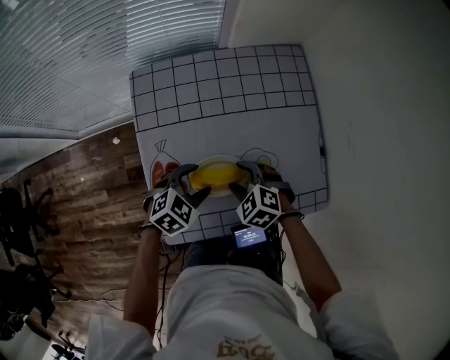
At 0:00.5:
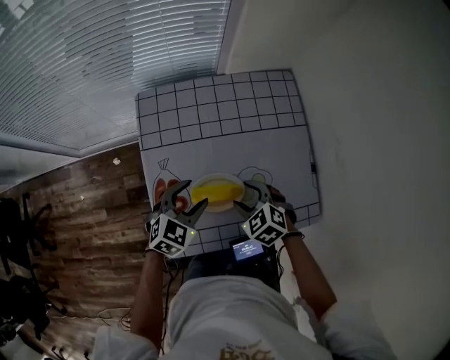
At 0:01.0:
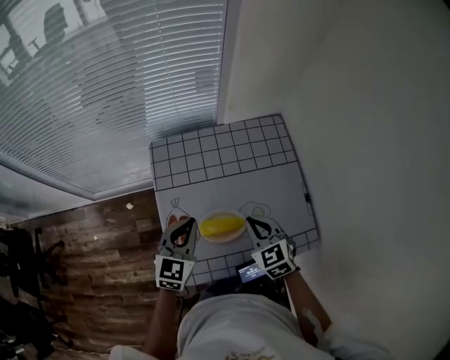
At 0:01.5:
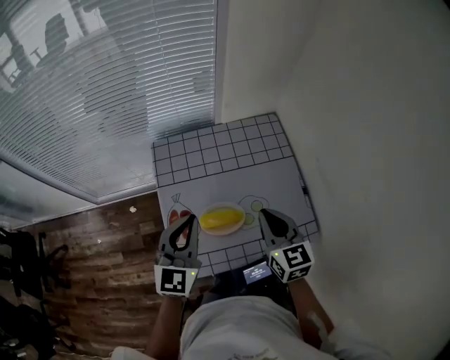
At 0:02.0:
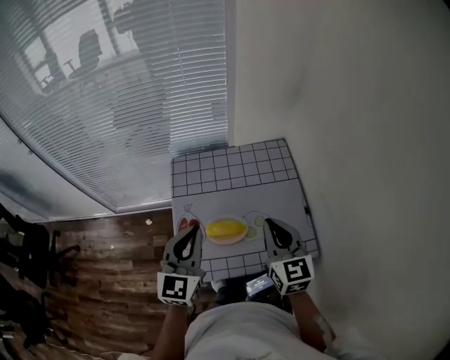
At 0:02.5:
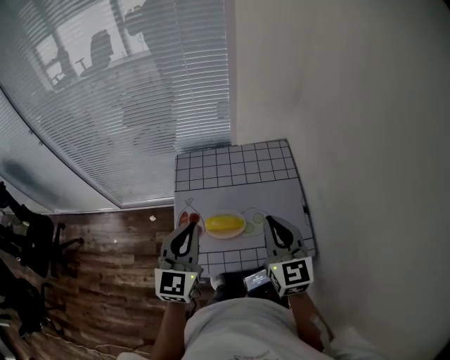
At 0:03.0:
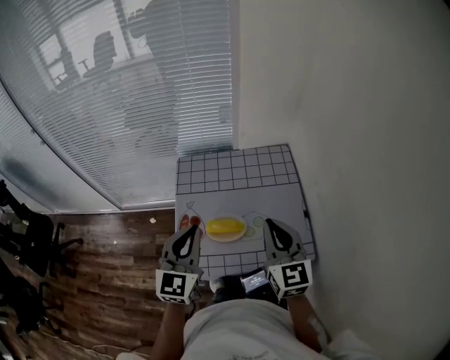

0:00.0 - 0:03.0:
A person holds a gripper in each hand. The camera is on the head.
0:00.0 - 0:01.5: Both grippers move upward, some 25 cm. The left gripper points its fingers approximately 40 degrees further upward, and closes, while the right gripper angles its fingers upward, by about 40 degrees, and closes its fingers.
0:01.5 - 0:03.0: The left gripper shifts approximately 10 cm backward and upward, while the right gripper travels upward and backward by approximately 10 cm.

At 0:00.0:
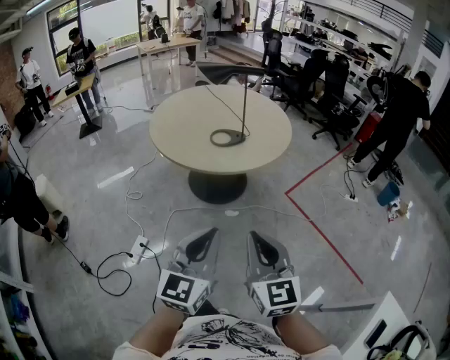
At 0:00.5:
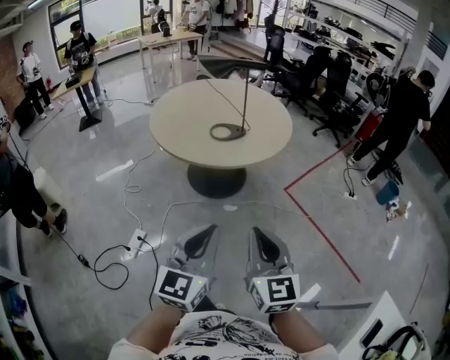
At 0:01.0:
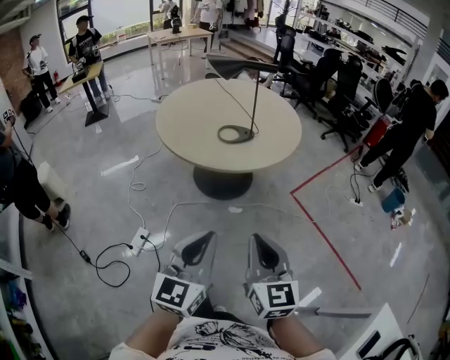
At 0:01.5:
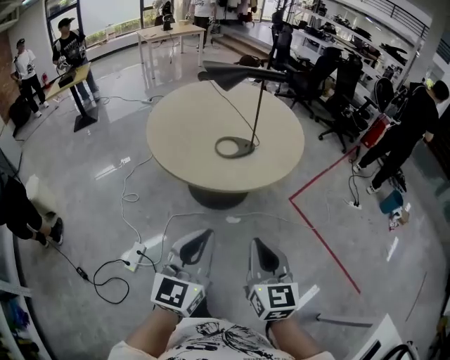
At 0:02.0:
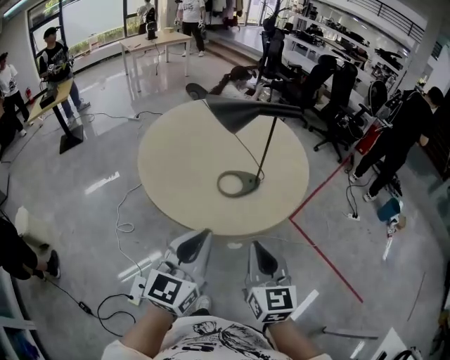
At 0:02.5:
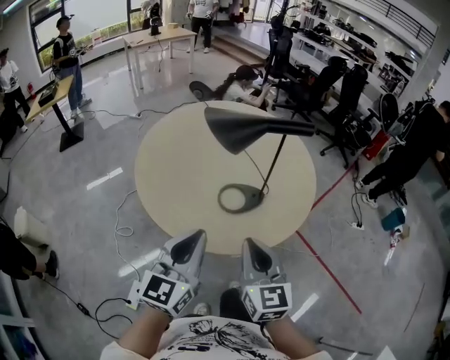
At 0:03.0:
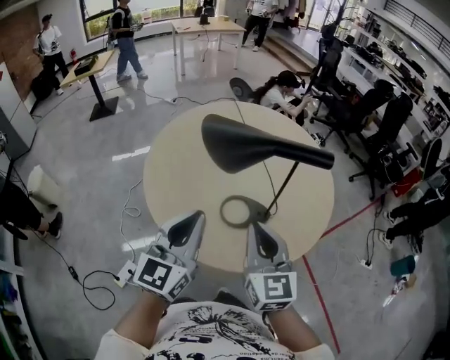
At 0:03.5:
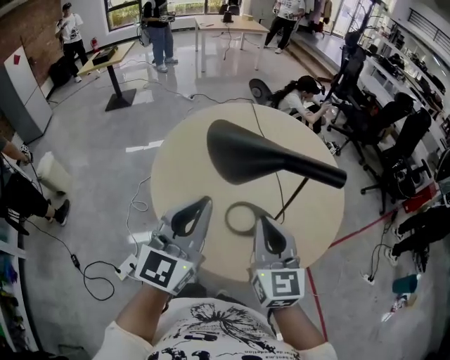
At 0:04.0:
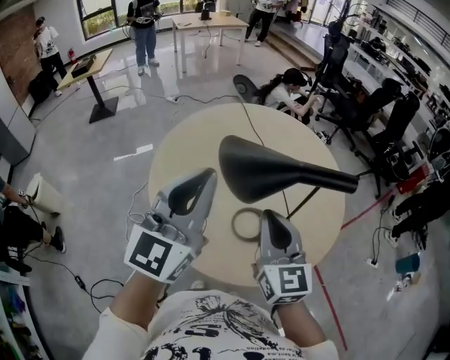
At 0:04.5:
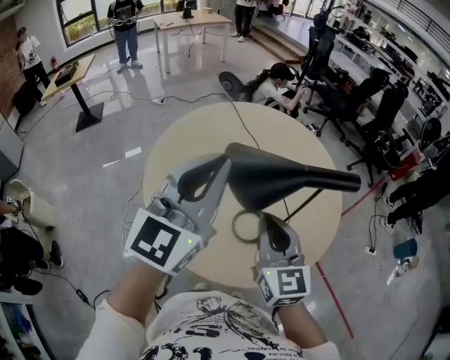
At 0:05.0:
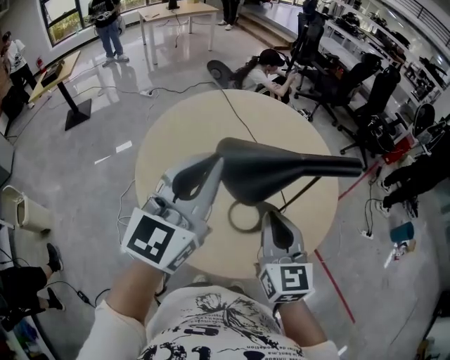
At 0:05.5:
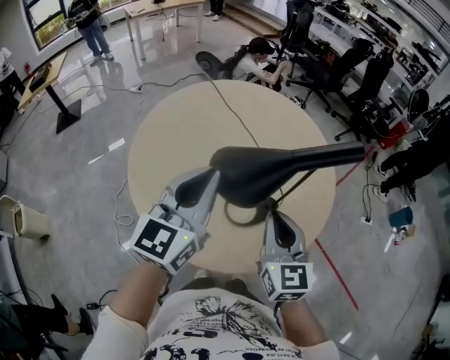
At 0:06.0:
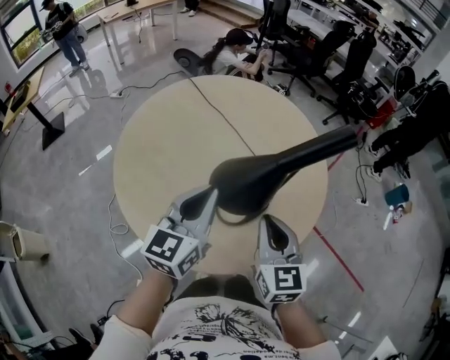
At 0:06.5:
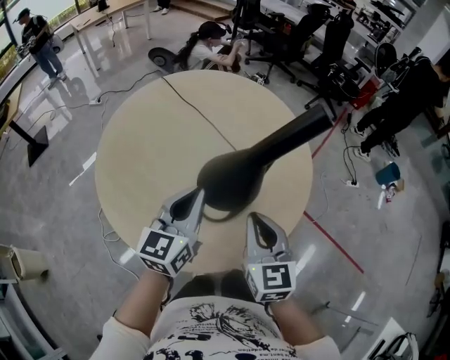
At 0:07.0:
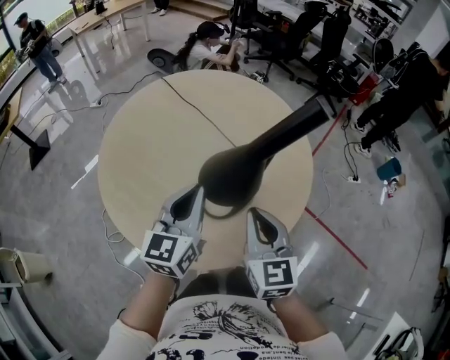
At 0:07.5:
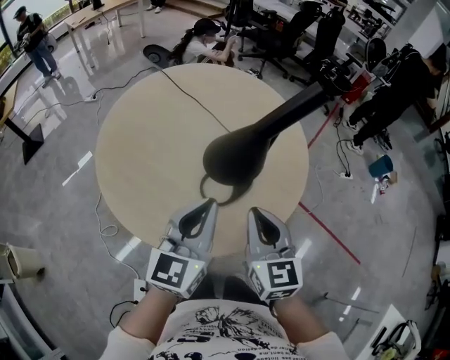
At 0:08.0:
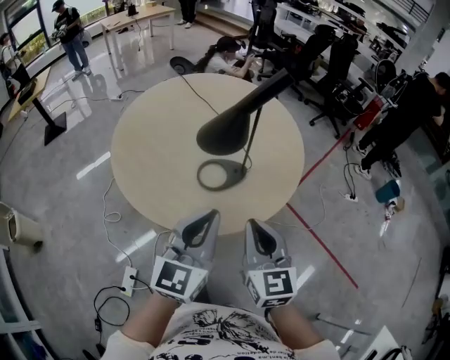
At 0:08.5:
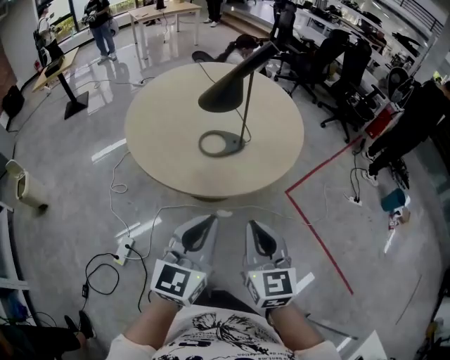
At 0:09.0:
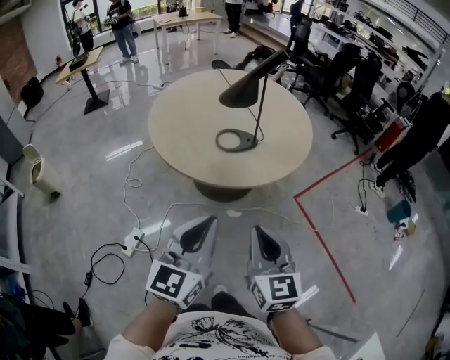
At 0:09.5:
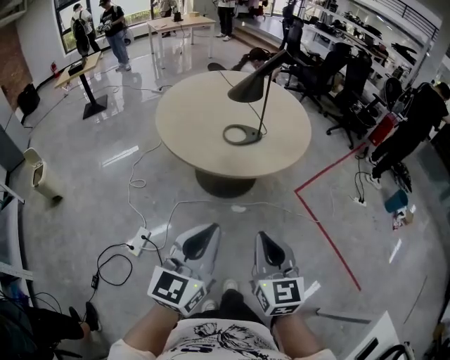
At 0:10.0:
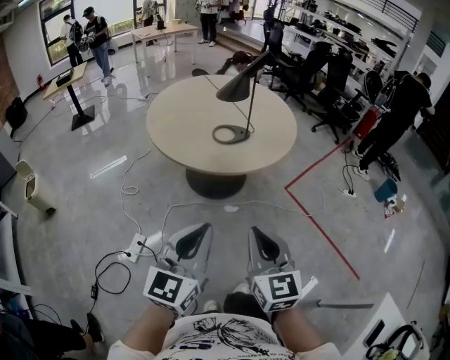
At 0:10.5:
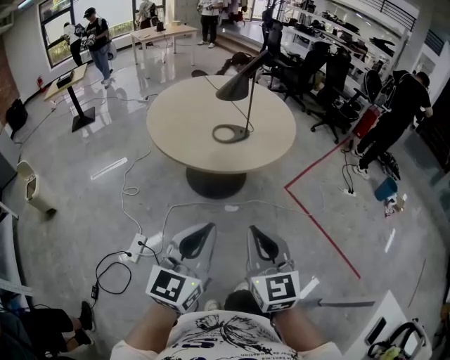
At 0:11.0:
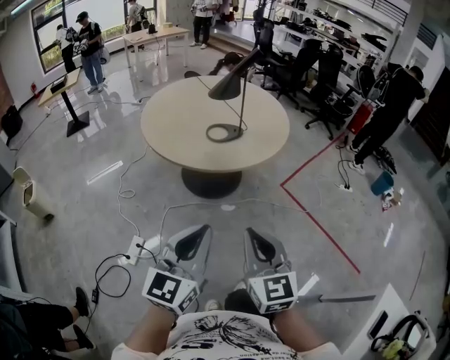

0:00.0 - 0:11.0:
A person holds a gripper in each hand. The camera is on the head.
0:00.0 - 0:02.0: The left gripper is displaced forward and to the left by about 30 cm. The right gripper heads forward, covering some 25 cm.
0:02.0 - 0:03.5: The two grippers go approximately 20 cm forward. The right gripper changes its angle by some 20 degrees, while the left gripper swivels some 20 degrees.
0:03.5 - 0:05.5: The right gripper turns by roughly 20 degrees; the left gripper moves forward, some 10 cm, reaches roughly 10 cm upward, then returns, and rotates about 20 degrees.
0:05.5 - 0:07.5: The right gripper shifts about 5 cm backward; the left gripper is displaced to the right, backward and downward by approximately 10 cm.
0:07.5 - 0:09.0: Both grippers travel together backward, roughly 30 cm. The right gripper turns by approximately 20 degrees.
0:09.0 - 0:11.0: Both grippers move backward, roughly 15 cm.

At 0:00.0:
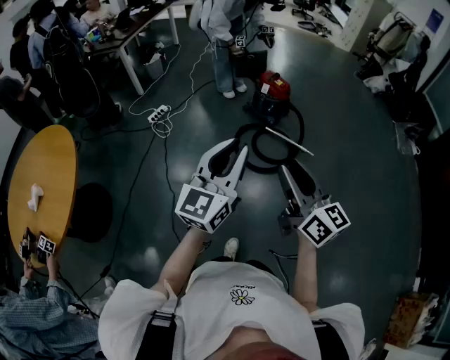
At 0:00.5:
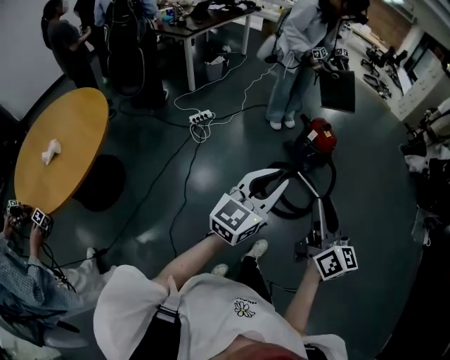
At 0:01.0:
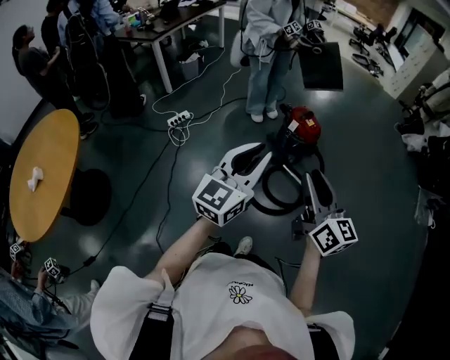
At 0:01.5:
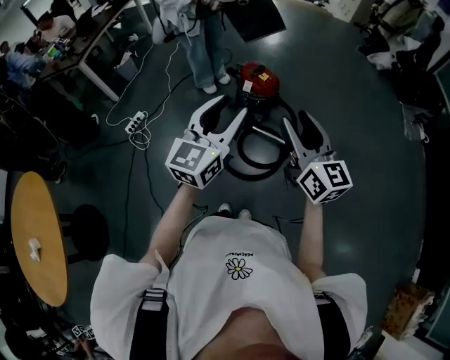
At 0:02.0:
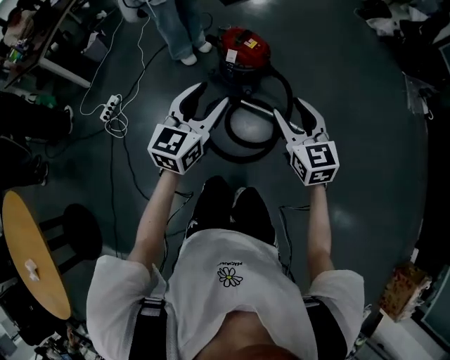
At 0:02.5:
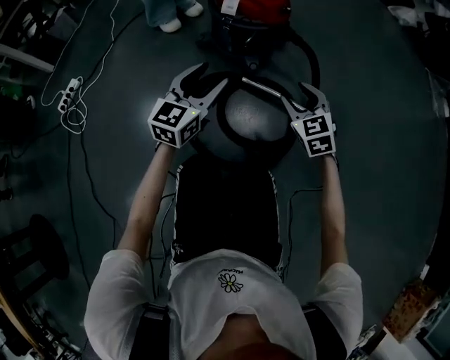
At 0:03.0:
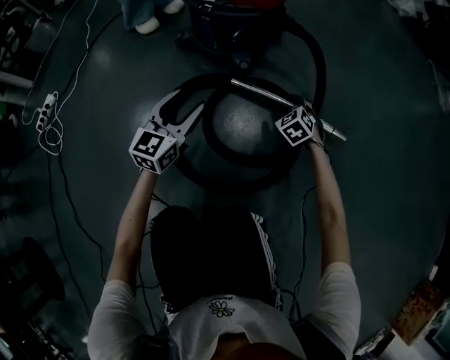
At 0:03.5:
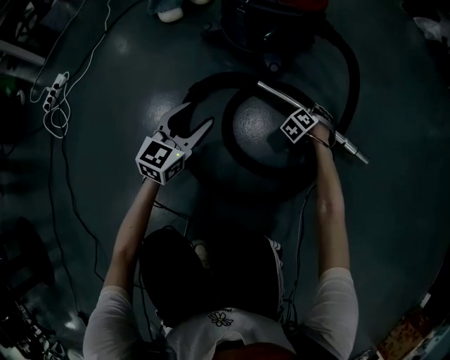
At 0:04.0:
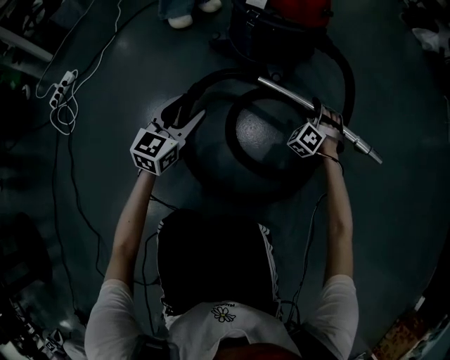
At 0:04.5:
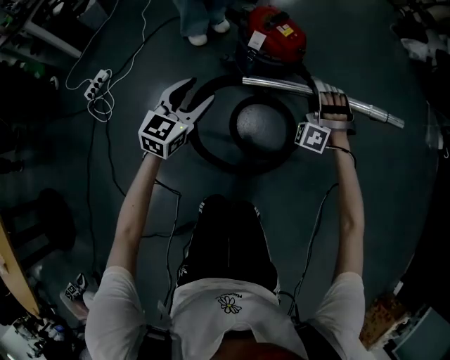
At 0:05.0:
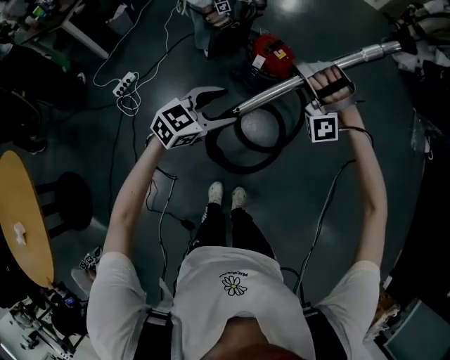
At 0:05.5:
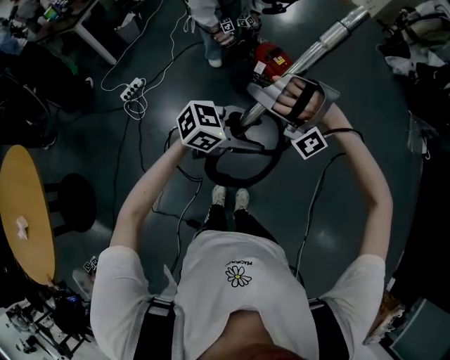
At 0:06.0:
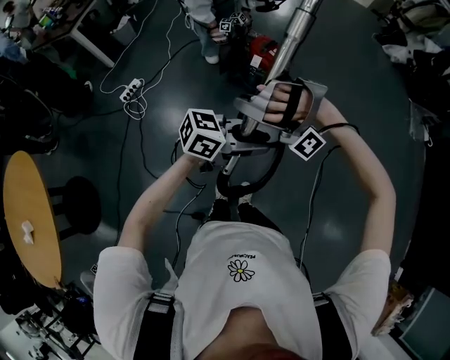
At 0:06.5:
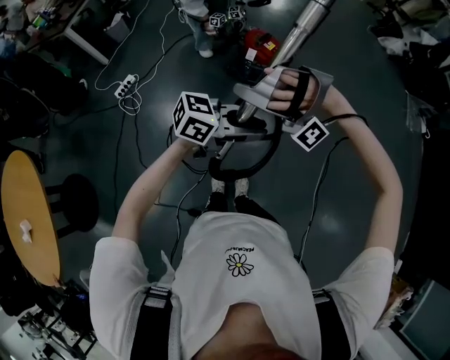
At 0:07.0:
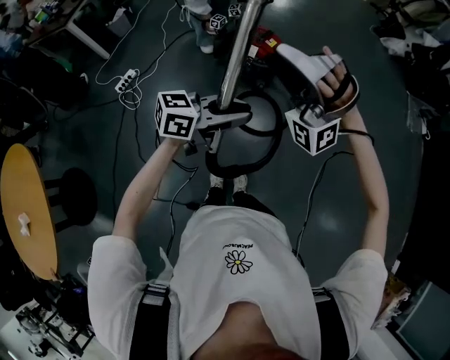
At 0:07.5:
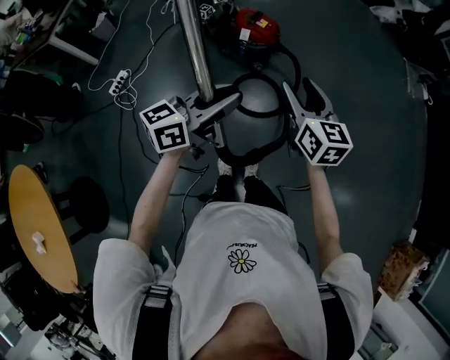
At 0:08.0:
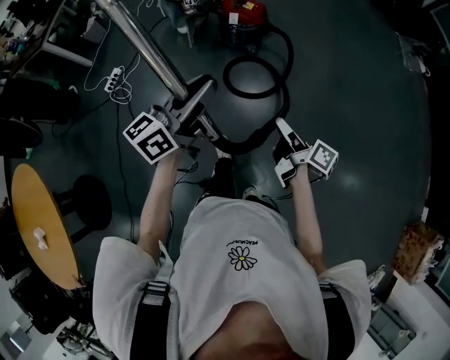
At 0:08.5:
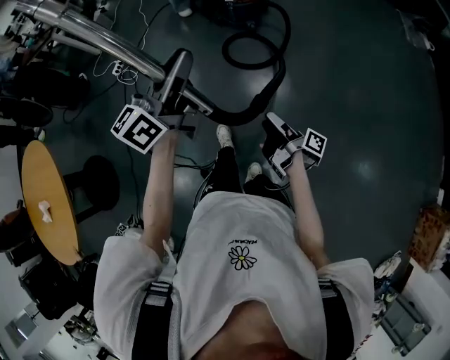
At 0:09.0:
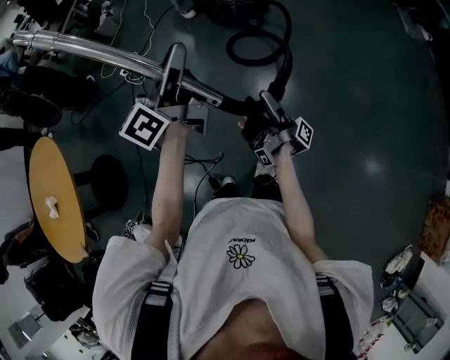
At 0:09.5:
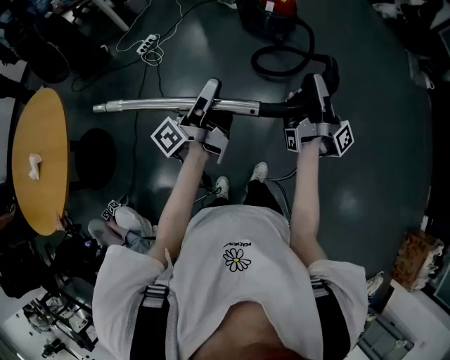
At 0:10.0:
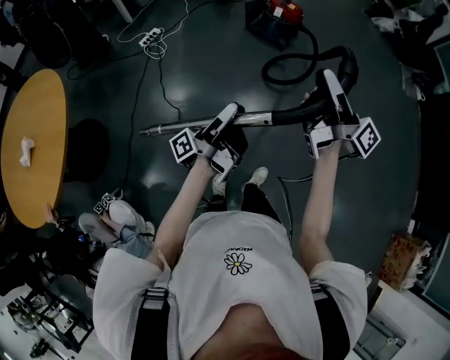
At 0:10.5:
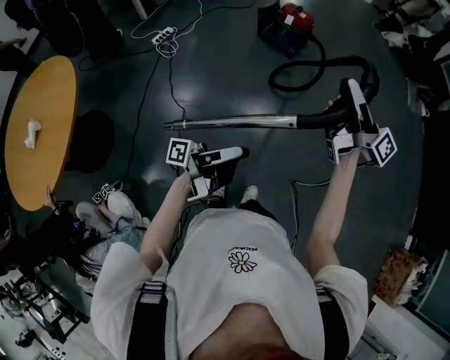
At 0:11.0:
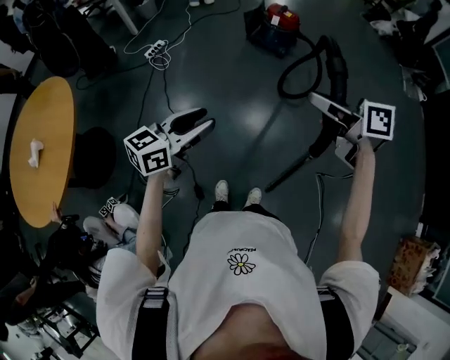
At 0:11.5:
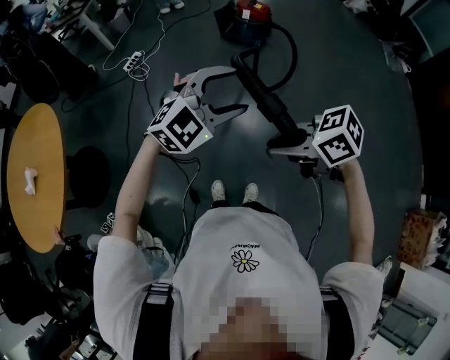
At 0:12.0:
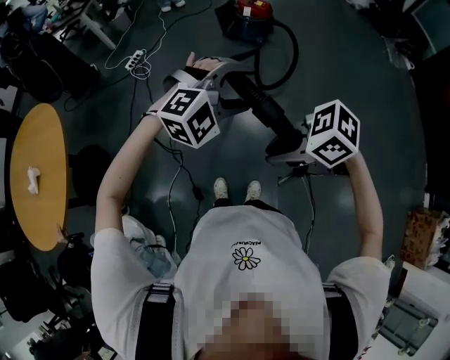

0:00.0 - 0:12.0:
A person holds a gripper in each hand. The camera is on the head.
0:00.0 - 0:02.0: The two grippers travel together, forward, roughly 50 cm. The left gripper turns by some 20 degrees, and opens up, while the right gripper heads downward, covering about 20 cm, and changes its angle by approximately 40 degrees.
0:02.0 - 0:04.0: The grippers both shift downward by some 70 cm. The right gripper rolls counterclockwise, seen from behind, by some 60 degrees.
0:04.0 - 0:06.0: Both grippers travel together upward, approximately 80 cm. The right gripper rotates roughly 100 degrees; the left gripper changes its angle by some 60 degrees, and closes its fingers.
0:06.0 - 0:08.0: The right gripper shifts by about 35 cm, and twists about 140 degrees counterclockwise, seen from behind. The left gripper shifts by about 10 cm, and changes its angle by approximately 40 degrees.
0:08.0 - 0:10.0: The left gripper is displaced backward by about 40 cm, and rolls counterclockwise, seen from behind, by some 60 degrees; the right gripper is displaced backward, upward and to the left by some 40 cm, points its fingers approximately 30 degrees further upward, and closes.
0:10.0 - 0:12.0: The right gripper moves approximately 25 cm, and tips its fingers downward by approximately 60 degrees; the left gripper changes place by some 15 cm, rotates around the line of its fingers by approximately 130 degrees, clockwise from behind, and opens its fingers.
